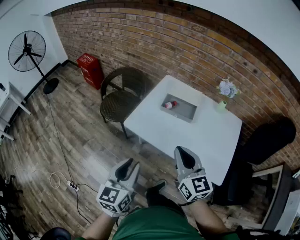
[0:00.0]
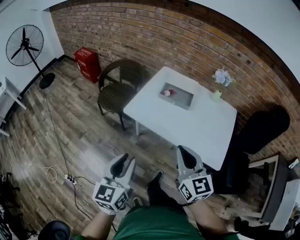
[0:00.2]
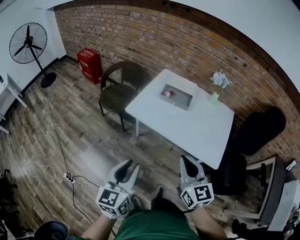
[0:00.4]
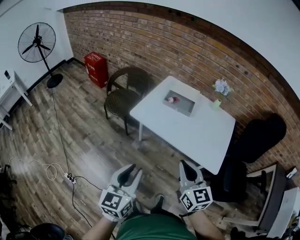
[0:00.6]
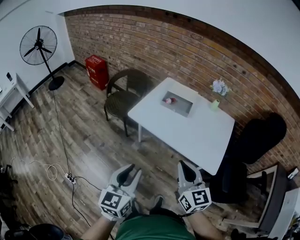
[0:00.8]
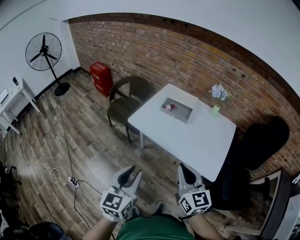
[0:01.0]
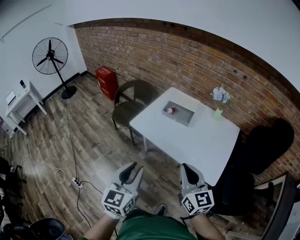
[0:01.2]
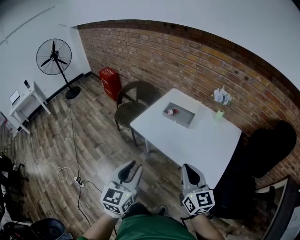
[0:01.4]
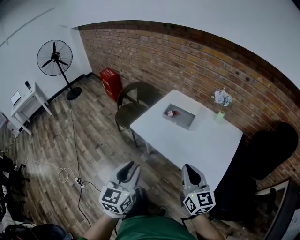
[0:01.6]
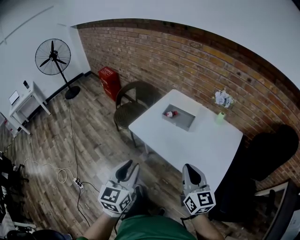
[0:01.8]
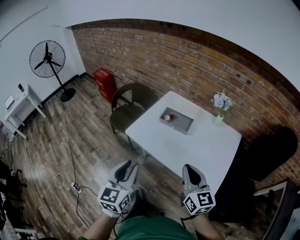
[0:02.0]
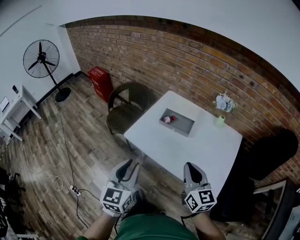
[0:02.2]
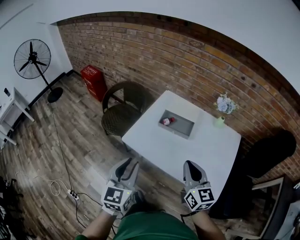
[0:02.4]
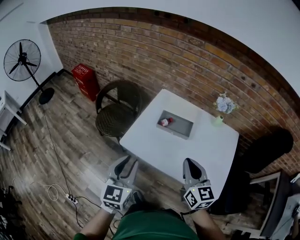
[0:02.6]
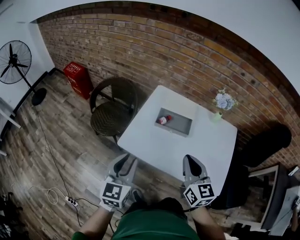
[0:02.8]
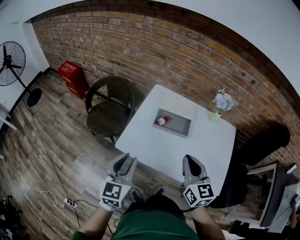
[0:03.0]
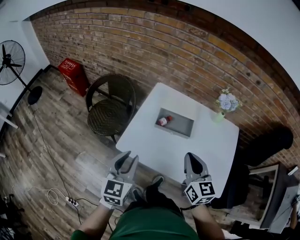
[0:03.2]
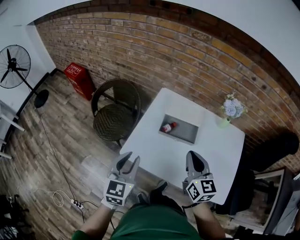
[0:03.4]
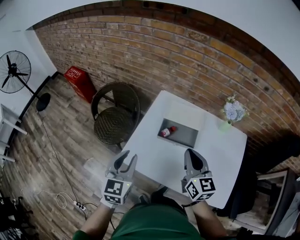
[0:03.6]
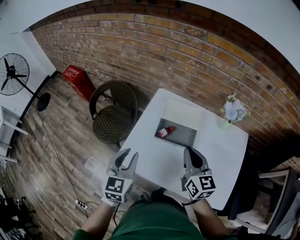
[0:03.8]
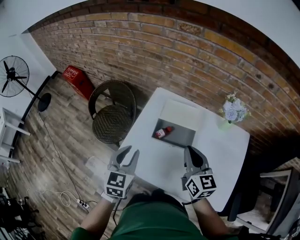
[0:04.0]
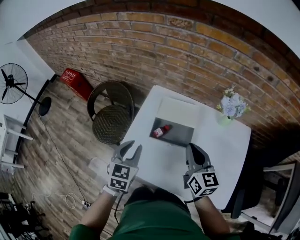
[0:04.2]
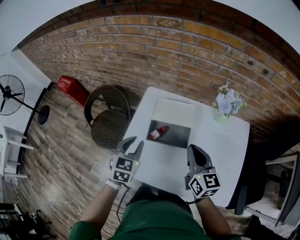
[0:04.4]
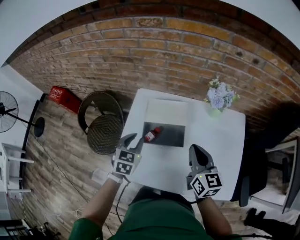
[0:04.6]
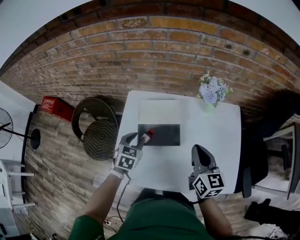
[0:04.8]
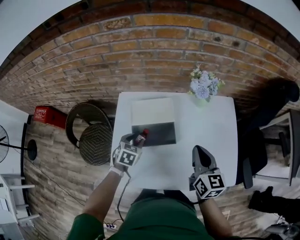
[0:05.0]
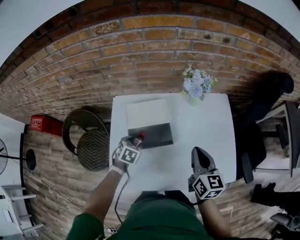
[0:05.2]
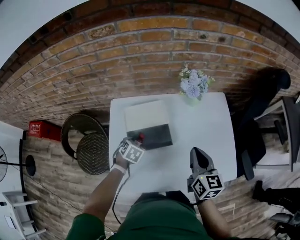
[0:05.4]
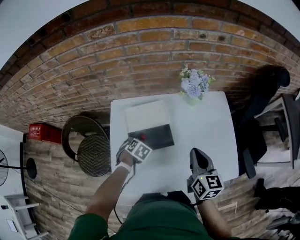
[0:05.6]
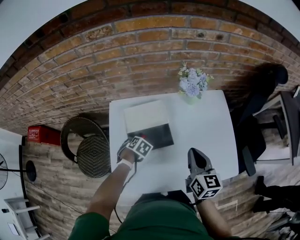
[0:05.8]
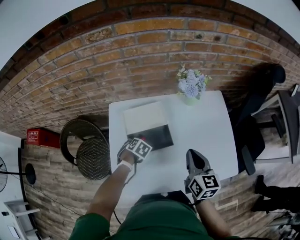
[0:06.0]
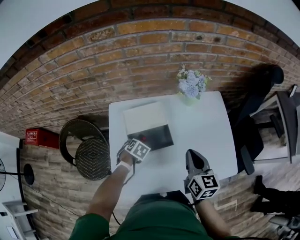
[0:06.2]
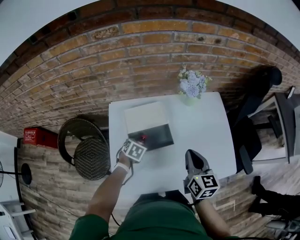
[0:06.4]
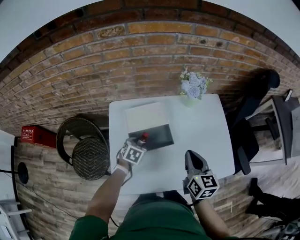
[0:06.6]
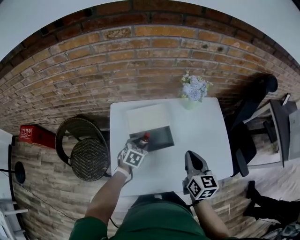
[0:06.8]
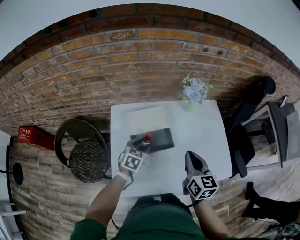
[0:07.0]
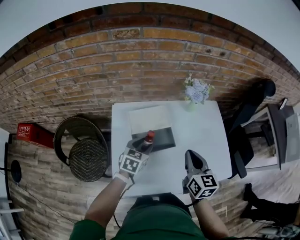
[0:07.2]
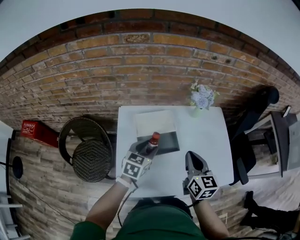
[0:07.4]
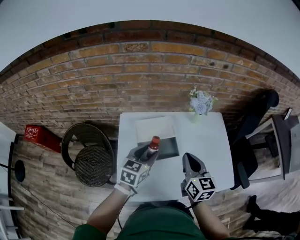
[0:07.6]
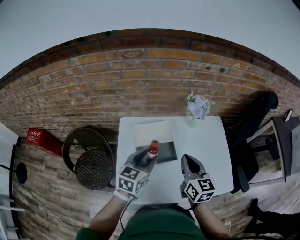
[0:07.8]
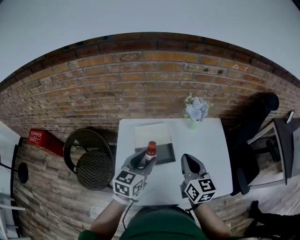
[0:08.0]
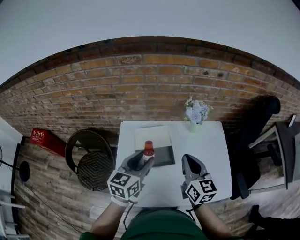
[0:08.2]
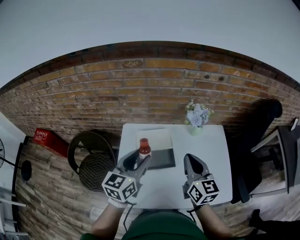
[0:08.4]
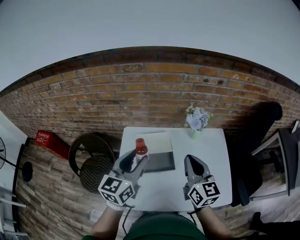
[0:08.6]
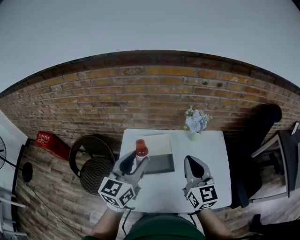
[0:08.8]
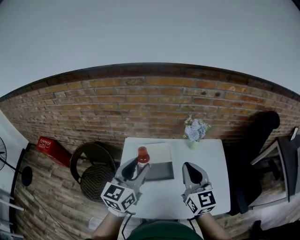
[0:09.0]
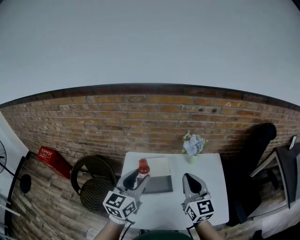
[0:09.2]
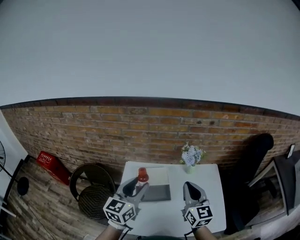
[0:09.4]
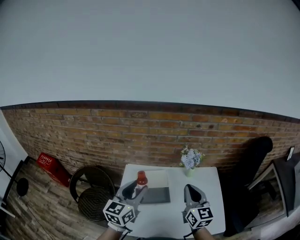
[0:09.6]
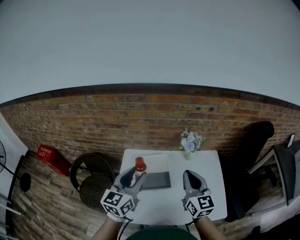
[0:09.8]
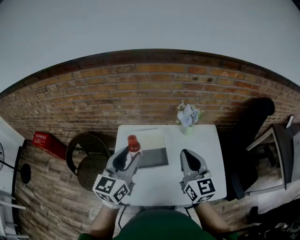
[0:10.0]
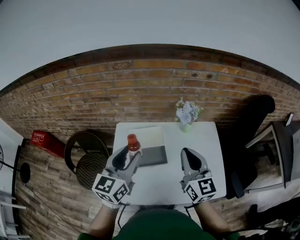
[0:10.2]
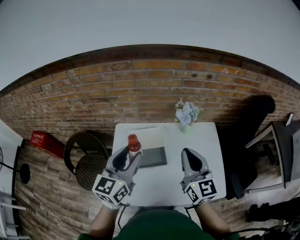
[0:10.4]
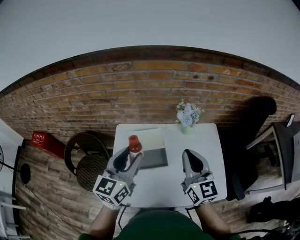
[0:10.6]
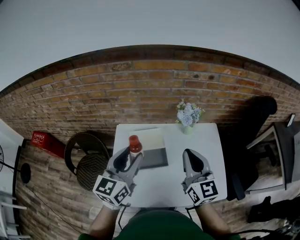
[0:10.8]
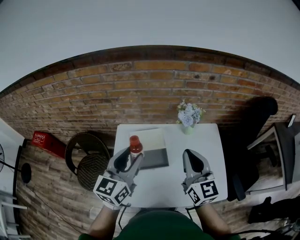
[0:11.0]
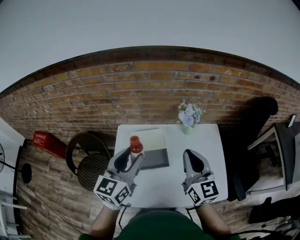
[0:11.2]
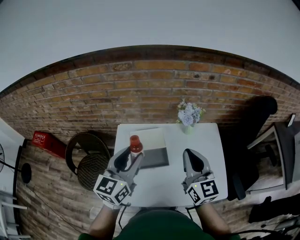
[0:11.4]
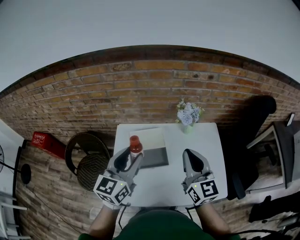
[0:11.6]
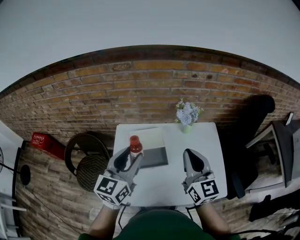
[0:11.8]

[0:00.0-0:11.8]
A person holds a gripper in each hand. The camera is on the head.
0:00.0 to 0:01.4: The right gripper goes about 20 cm backward and to the right; the left gripper heads backward, to the right and upward, covering roughly 15 cm.
0:01.4 to 0:03.0: The two grippers go approximately 25 cm forward. The right gripper rotates some 20 degrees.
0:03.0 to 0:04.4: Both grippers move forward and to the right, about 25 cm. The left gripper changes its angle by approximately 20 degrees.
0:04.4 to 0:06.0: The left gripper travels downward by approximately 20 cm, angles its fingers downward, by approximately 50 degrees, and opens its fingers; the right gripper moves roughly 5 cm, and rotates about 30 degrees.
0:06.0 to 0:07.4: The right gripper ends up roughly 10 cm from where it was; the left gripper is displaced upward by roughly 20 cm, and points its fingers approximately 50 degrees further upward.
0:07.4 to 0:08.8: The left gripper moves upward, roughly 20 cm, and changes its angle by about 30 degrees. The right gripper is displaced upward by some 15 cm, and changes its angle by about 20 degrees.
0:08.8 to 0:10.4: The grippers make only small movements.
0:10.4 to 0:11.8: Both grippers stay about where they are.

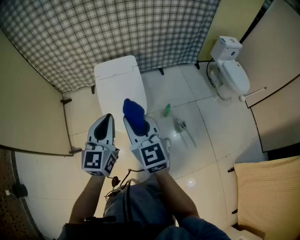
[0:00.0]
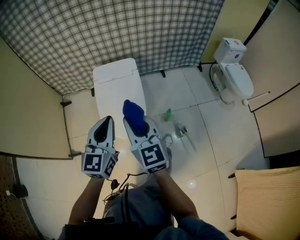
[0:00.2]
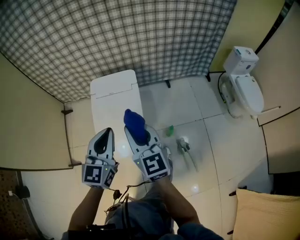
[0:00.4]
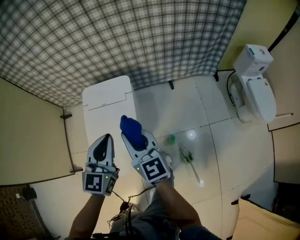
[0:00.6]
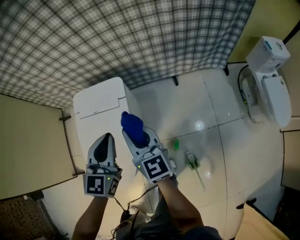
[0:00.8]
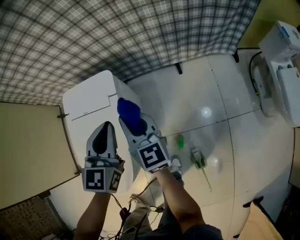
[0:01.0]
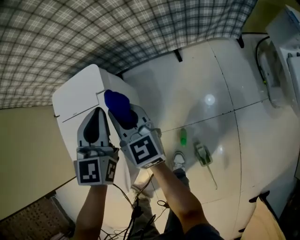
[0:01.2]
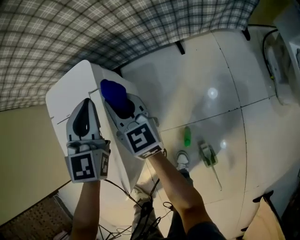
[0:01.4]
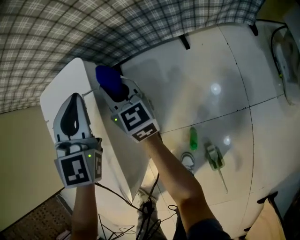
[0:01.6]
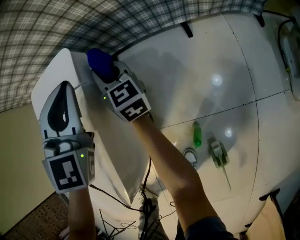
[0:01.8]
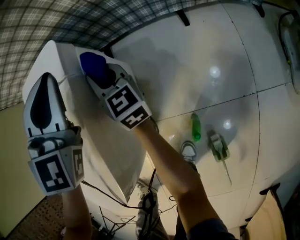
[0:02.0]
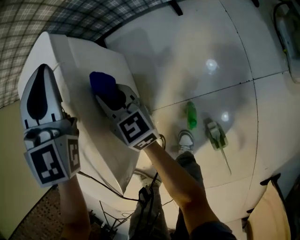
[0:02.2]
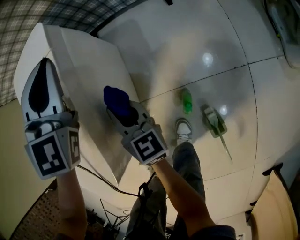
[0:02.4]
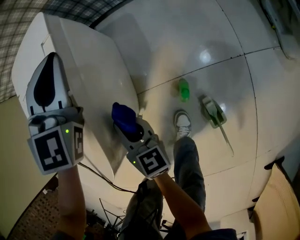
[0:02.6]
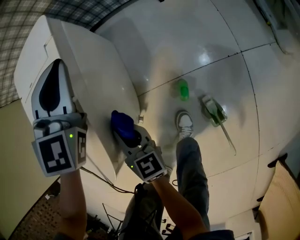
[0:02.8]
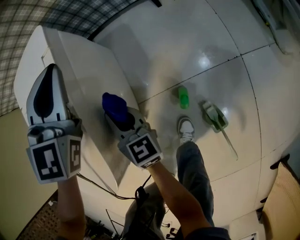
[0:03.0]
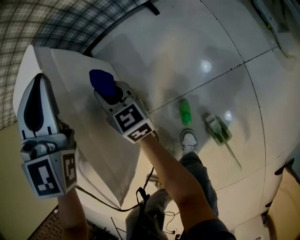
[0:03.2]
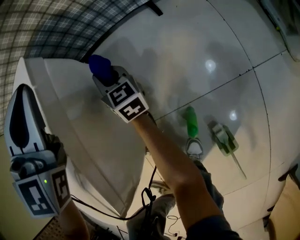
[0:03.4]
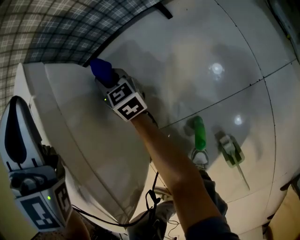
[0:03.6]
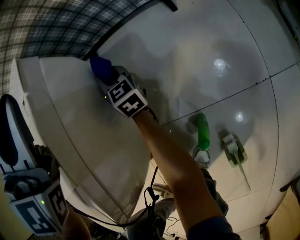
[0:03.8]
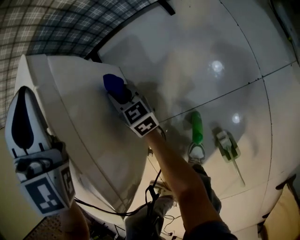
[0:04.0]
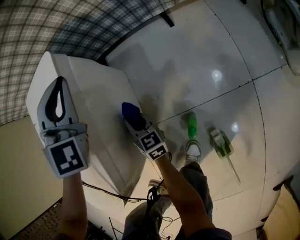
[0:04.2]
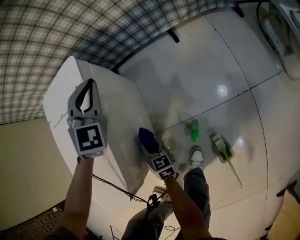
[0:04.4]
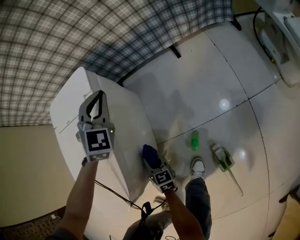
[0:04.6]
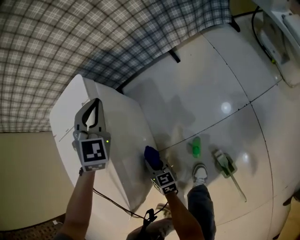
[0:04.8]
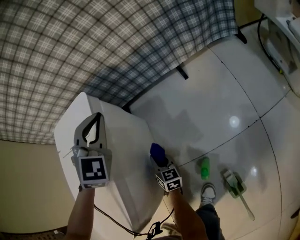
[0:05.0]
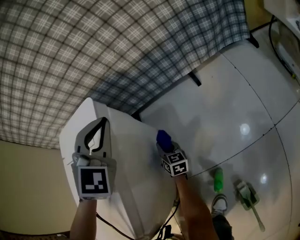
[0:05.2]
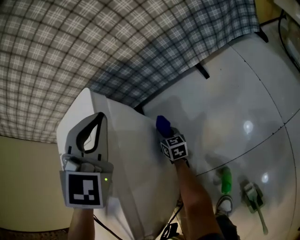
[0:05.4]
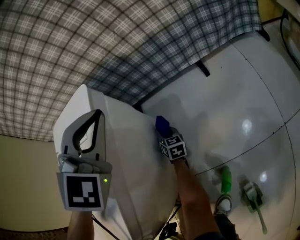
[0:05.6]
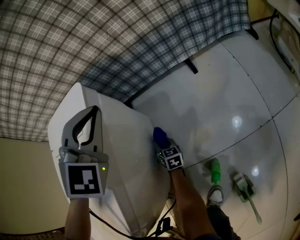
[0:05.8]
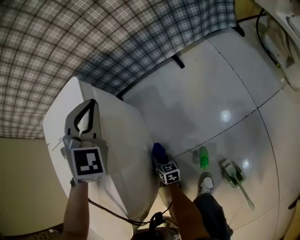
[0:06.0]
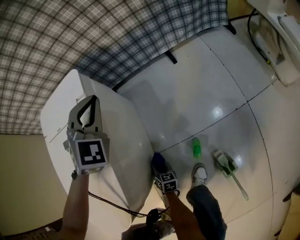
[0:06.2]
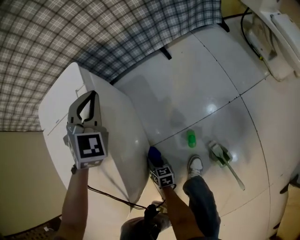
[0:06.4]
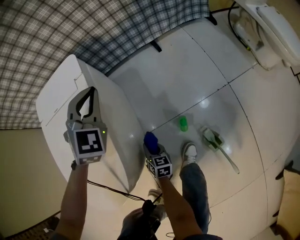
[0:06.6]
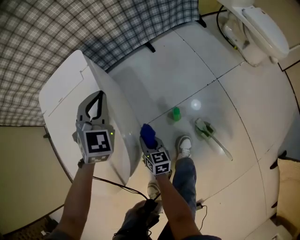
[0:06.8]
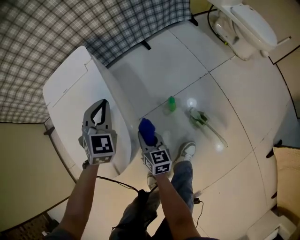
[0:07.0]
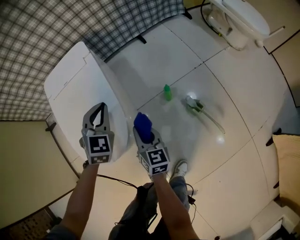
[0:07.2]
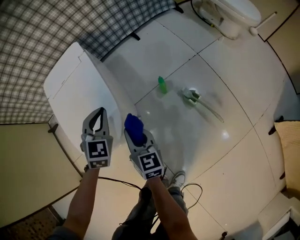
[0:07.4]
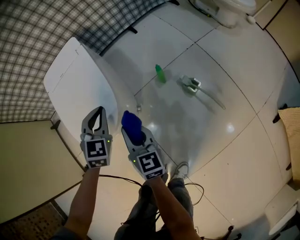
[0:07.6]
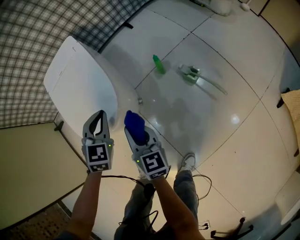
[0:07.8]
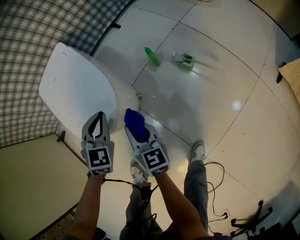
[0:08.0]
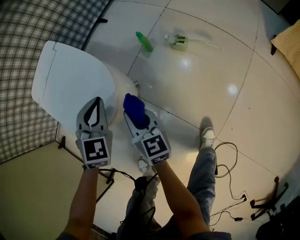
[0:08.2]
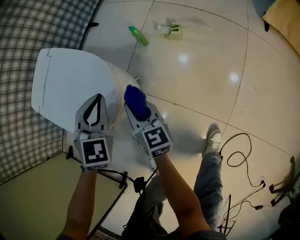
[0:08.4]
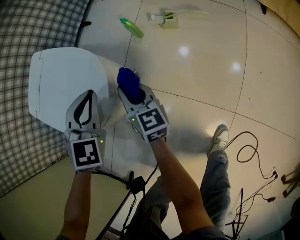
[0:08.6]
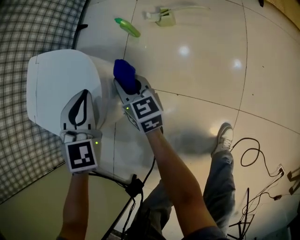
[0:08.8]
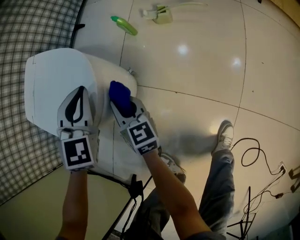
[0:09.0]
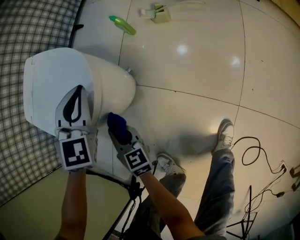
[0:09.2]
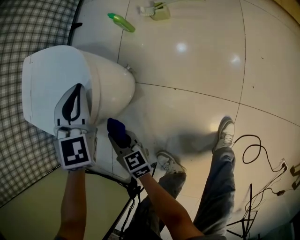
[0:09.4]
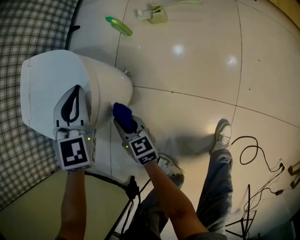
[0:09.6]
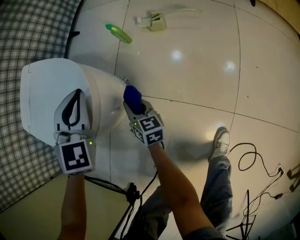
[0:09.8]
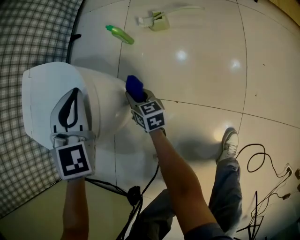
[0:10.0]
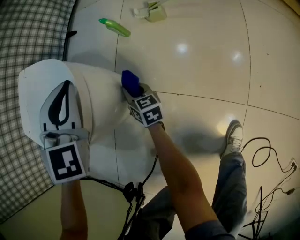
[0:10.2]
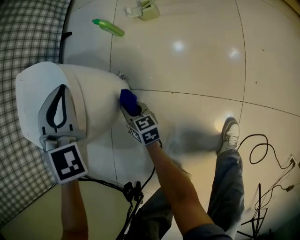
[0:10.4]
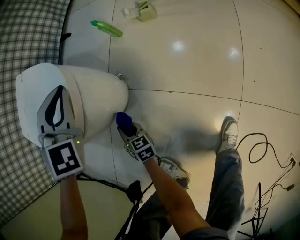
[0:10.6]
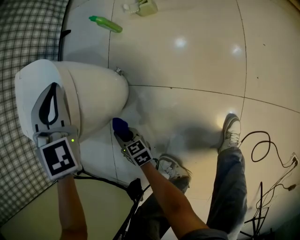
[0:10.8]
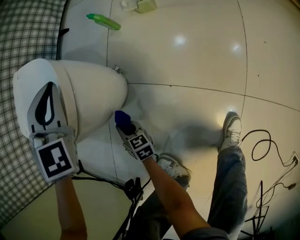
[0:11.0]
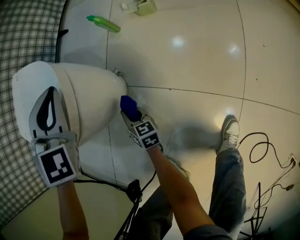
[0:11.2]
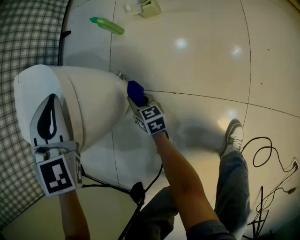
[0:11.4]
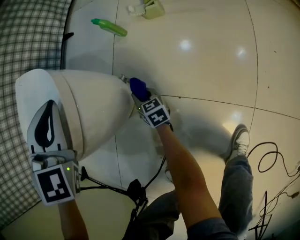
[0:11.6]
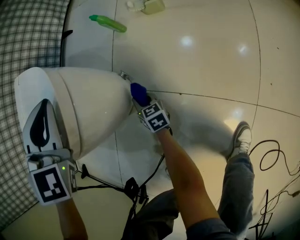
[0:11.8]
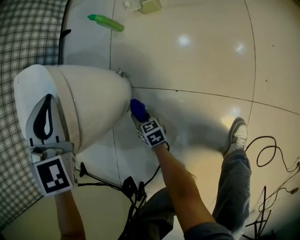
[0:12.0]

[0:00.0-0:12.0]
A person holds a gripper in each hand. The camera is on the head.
0:00.0 to 0:01.6: The two grippers travel together, forward and to the right, roughly 60 cm. The two grippers go approximately 40 cm downward. The left gripper swivels roughly 30 degrees. The right gripper rotates roughly 20 degrees.
0:01.6 to 0:03.0: The left gripper moves backward and to the right, some 10 cm. The right gripper swings forward and backward, about 35 cm each way, with 2 reversals.
0:03.0 to 0:04.4: The right gripper moves downward, about 10 cm, and goes forward and returns, approximately 25 cm each way, while the left gripper is displaced forward by approximately 5 cm.
0:04.4 to 0:06.0: The right gripper moves forward and backward over roughly 30 cm, changing direction 2 times.
0:06.0 to 0:07.6: The right gripper shifts approximately 60 cm upward and backward, and swivels approximately 40 degrees; the left gripper shifts approximately 40 cm backward, and swivels some 20 degrees.
0:07.6 to 0:09.0: The right gripper is displaced downward by approximately 15 cm, and swivels about 30 degrees; the left gripper changes place by some 15 cm, and swivels approximately 40 degrees.
0:09.0 to 0:10.4: The right gripper shifts some 20 cm downward.
0:10.4 to 0:12.0: The right gripper goes left and right, some 15 cm each way, reversing 2 times.
